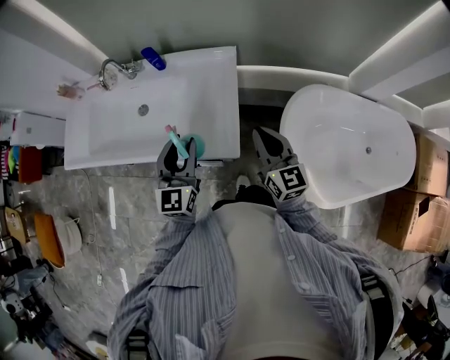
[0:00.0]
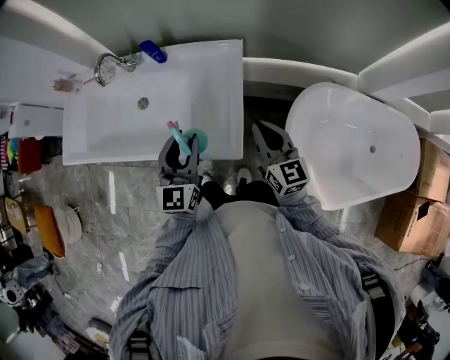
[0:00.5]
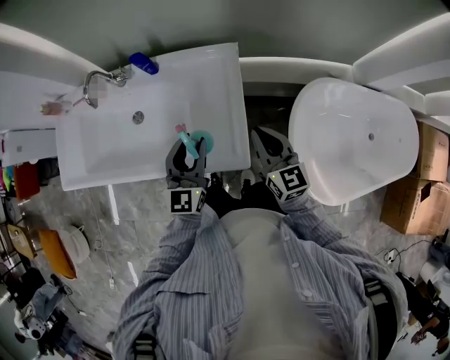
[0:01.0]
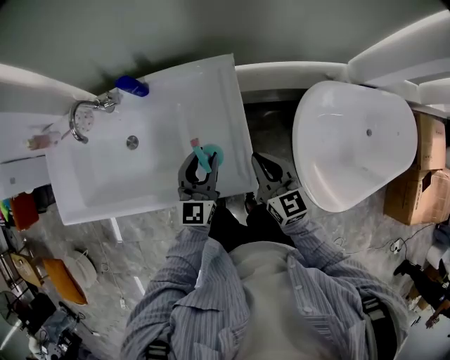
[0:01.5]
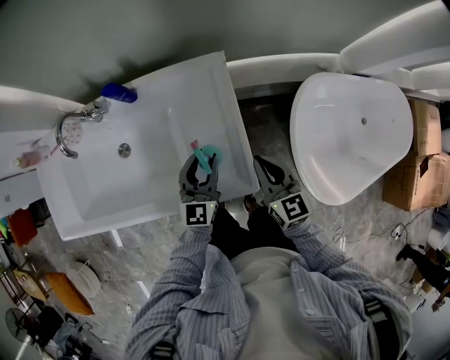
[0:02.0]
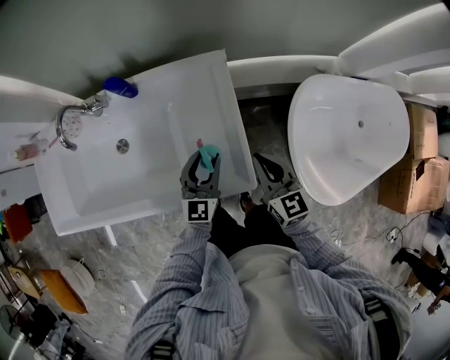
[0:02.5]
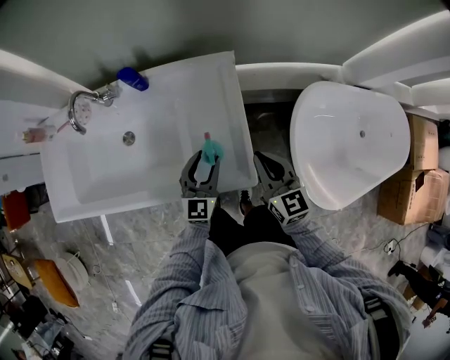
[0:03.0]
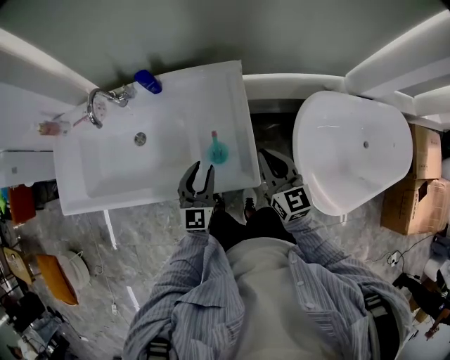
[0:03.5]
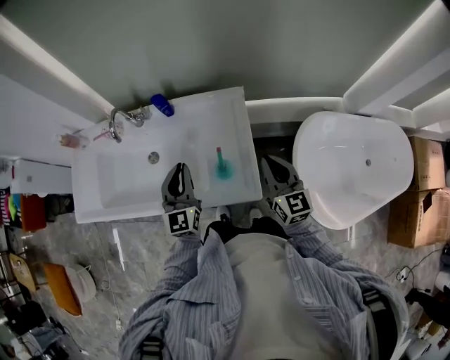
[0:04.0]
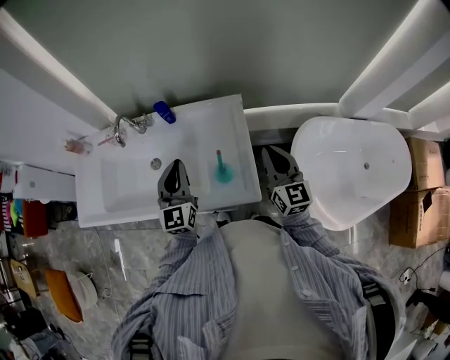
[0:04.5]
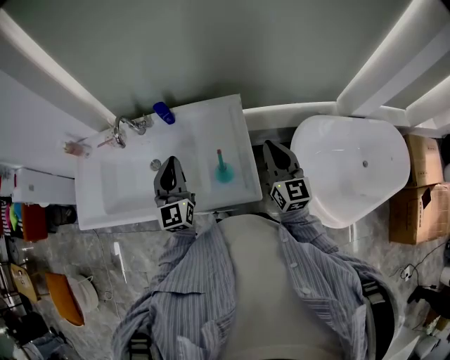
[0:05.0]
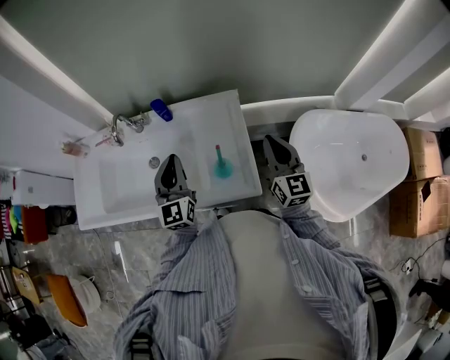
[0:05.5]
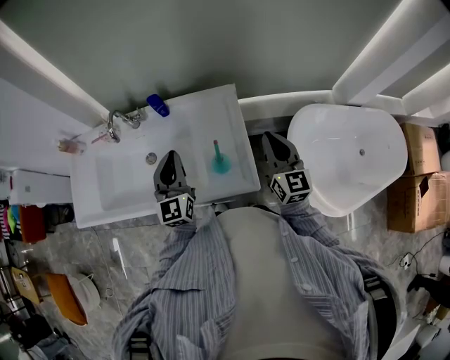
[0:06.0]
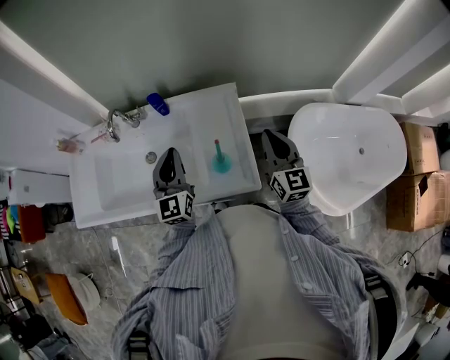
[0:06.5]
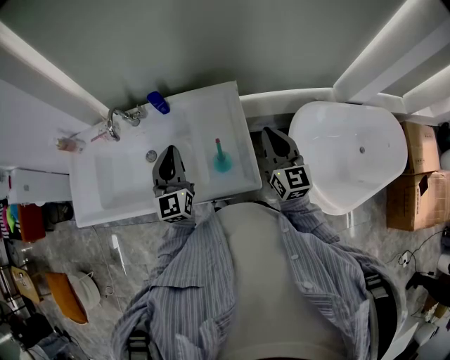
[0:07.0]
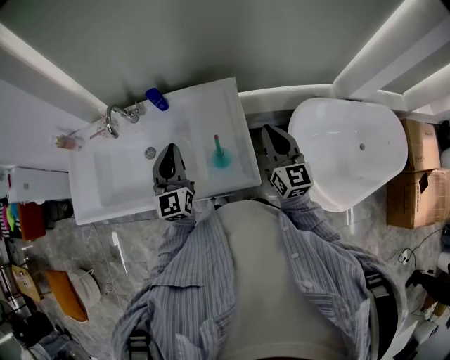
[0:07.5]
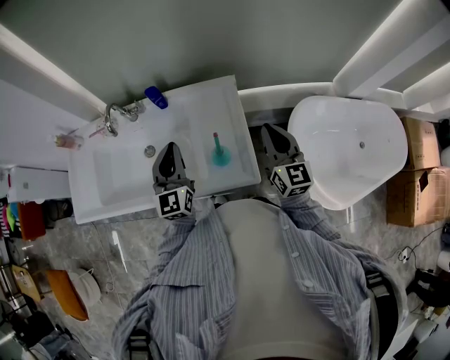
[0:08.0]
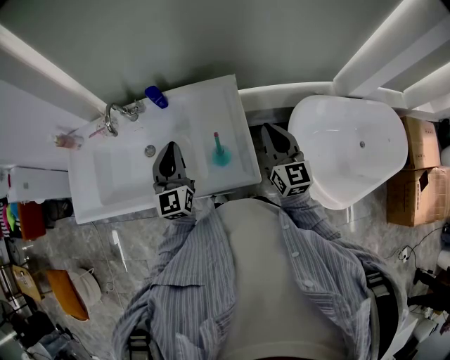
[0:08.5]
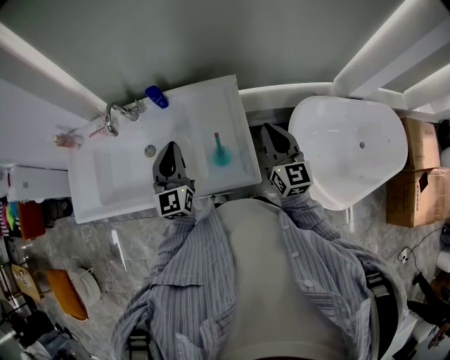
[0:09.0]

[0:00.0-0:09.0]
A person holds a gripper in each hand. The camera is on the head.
0:00.0 to 0:02.0: The right gripper travels downward, forward and to the left by about 15 cm. The left gripper heads downward and forward, covering approximately 25 cm.
0:02.0 to 0:04.5: The left gripper shifts some 20 cm upward and to the left, swivels approximately 20 degrees, and closes, while the right gripper moves upward, some 15 cm.
0:04.5 to 0:07.0: The grippers move only a little.
0:07.0 to 0:09.0: The two grippers keep their place.

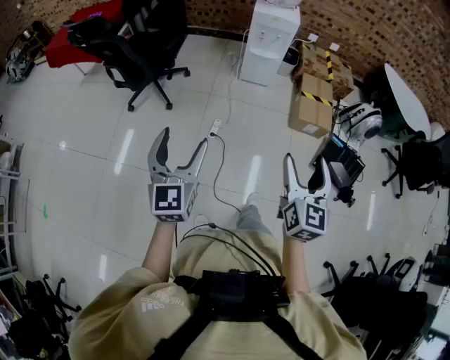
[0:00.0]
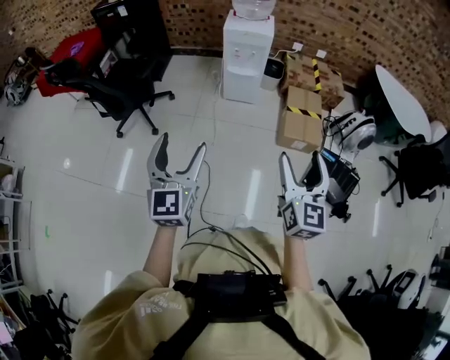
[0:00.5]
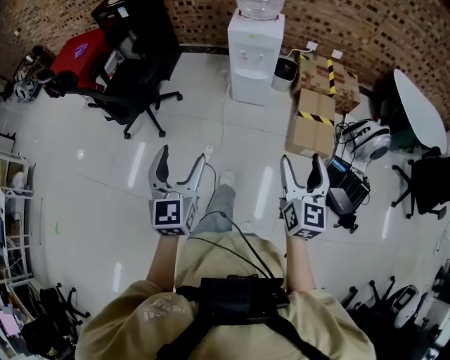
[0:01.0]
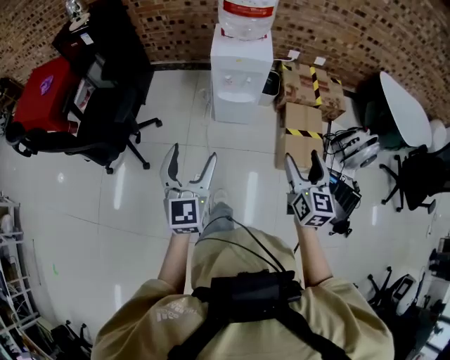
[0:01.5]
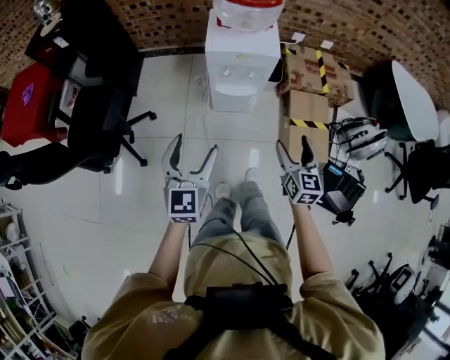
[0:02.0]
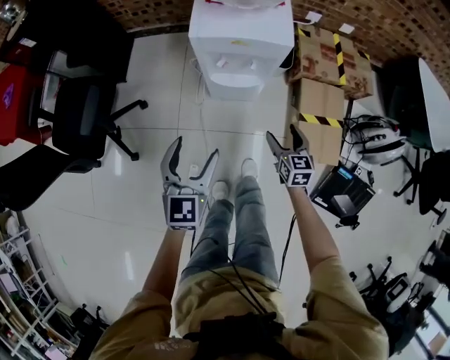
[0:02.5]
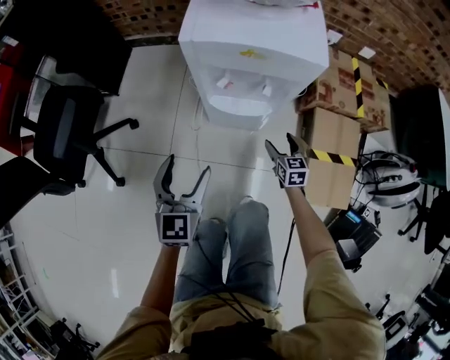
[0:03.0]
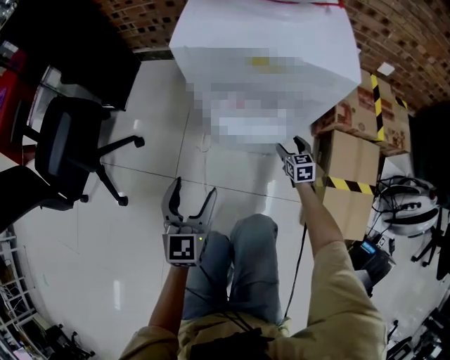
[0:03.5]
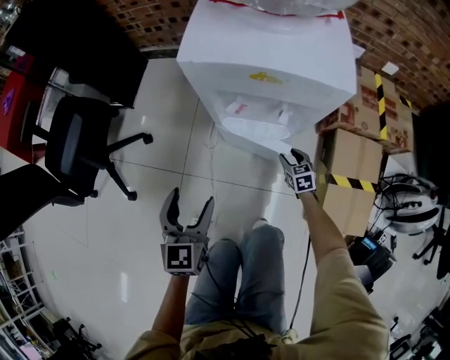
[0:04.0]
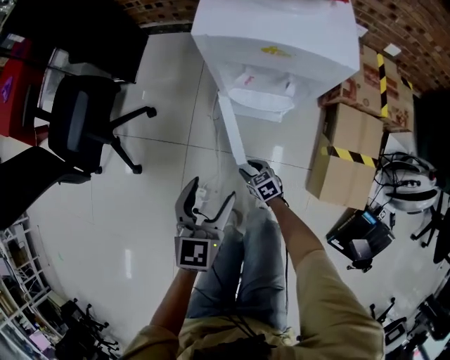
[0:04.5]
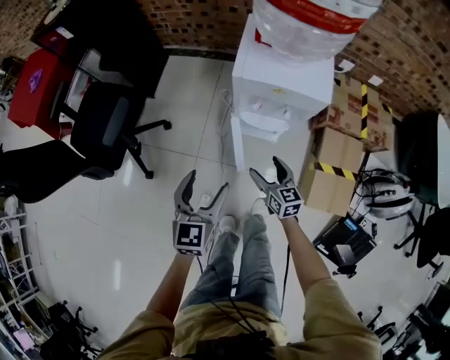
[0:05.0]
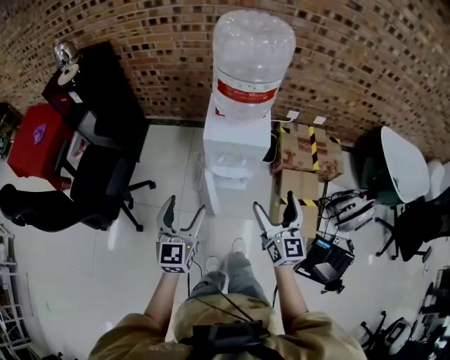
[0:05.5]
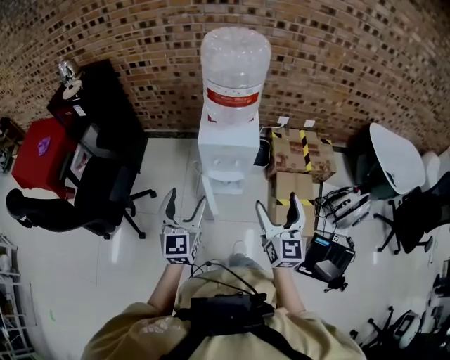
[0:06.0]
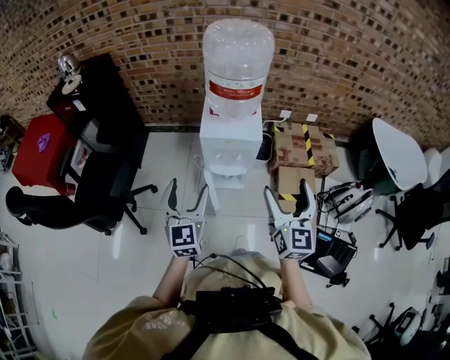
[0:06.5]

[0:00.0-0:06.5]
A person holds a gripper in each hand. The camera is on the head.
0:00.0 to 0:02.0: The two grippers travel together, forward, roughly 60 cm.
0:02.0 to 0:04.5: The right gripper shifts about 50 cm downward, changes its angle by roughly 50 degrees, and closes. The left gripper travels downward by approximately 30 cm.
0:04.5 to 0:06.5: The right gripper heads upward, covering roughly 80 cm, angles its fingers upward, by approximately 50 degrees, and opens up; the left gripper moves upward, about 40 cm, and swivels some 20 degrees.

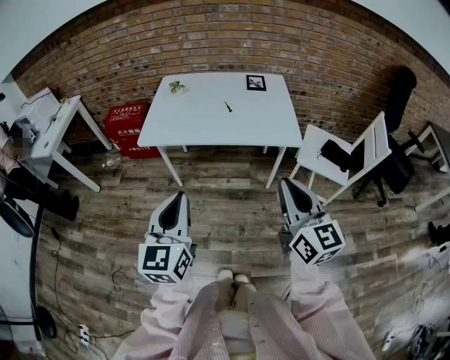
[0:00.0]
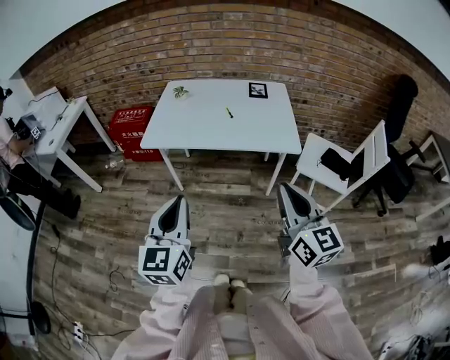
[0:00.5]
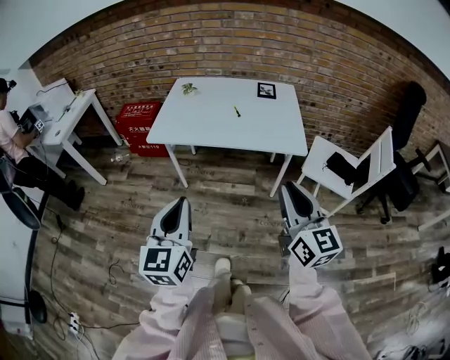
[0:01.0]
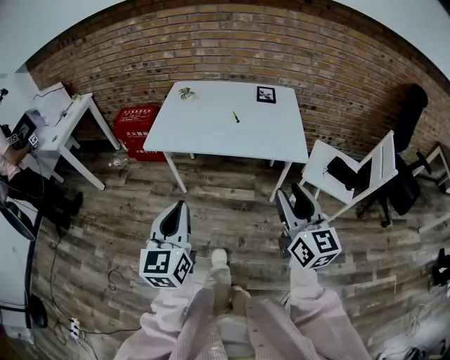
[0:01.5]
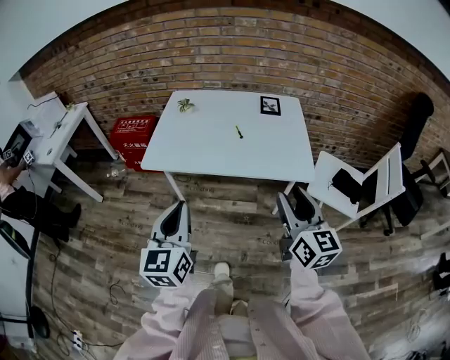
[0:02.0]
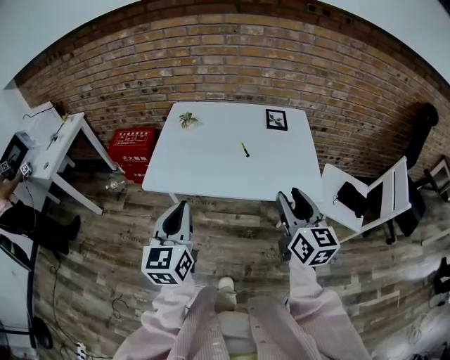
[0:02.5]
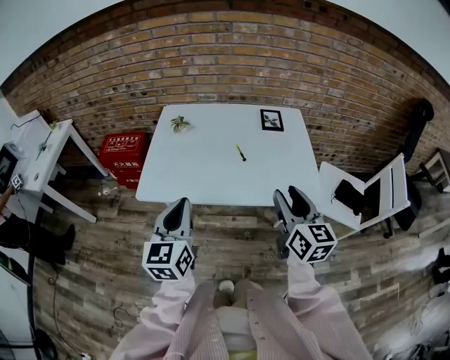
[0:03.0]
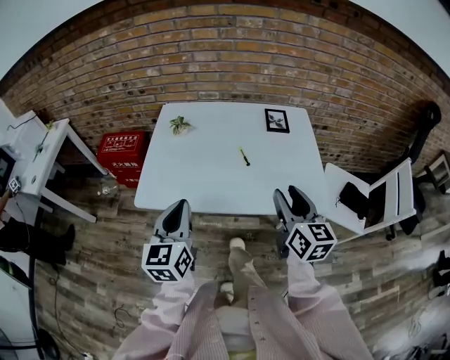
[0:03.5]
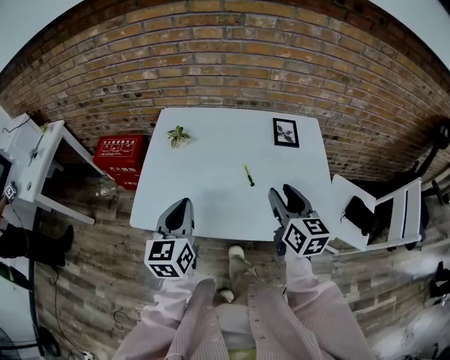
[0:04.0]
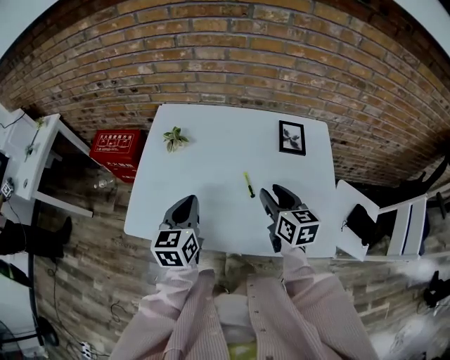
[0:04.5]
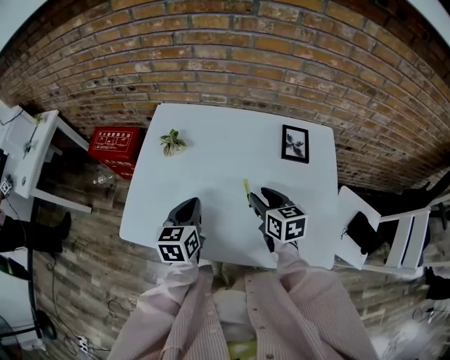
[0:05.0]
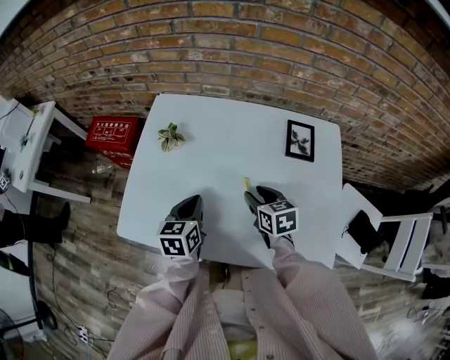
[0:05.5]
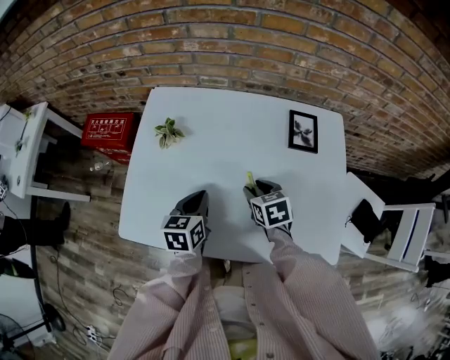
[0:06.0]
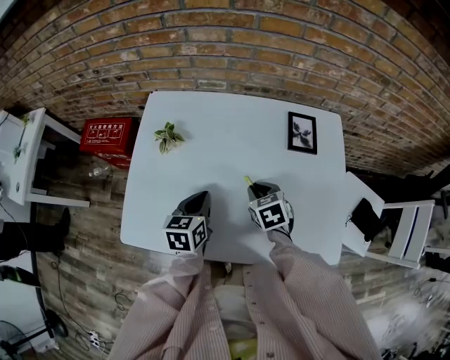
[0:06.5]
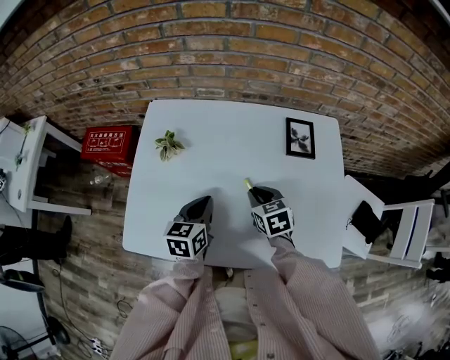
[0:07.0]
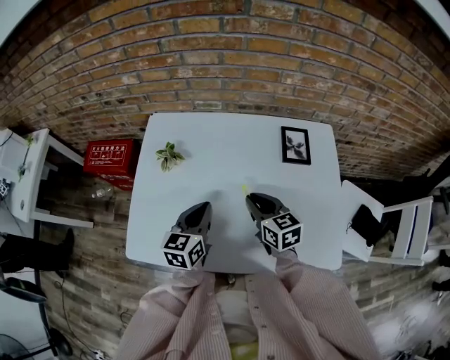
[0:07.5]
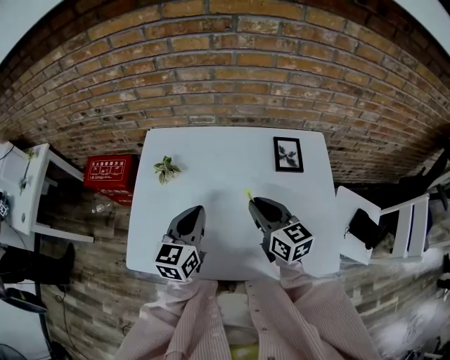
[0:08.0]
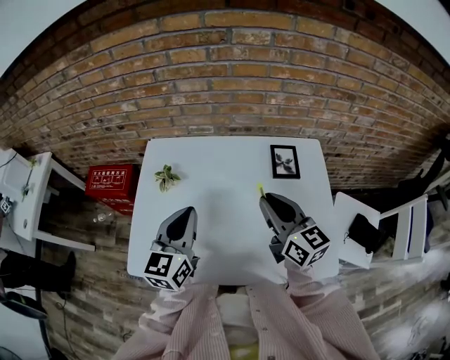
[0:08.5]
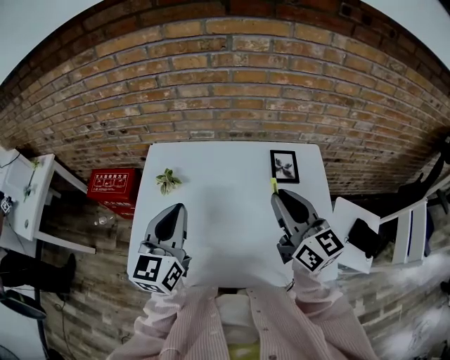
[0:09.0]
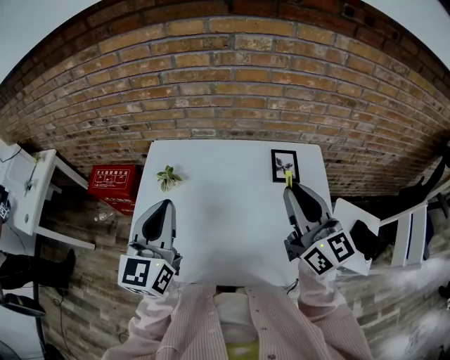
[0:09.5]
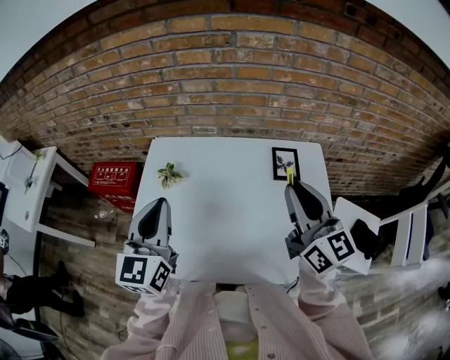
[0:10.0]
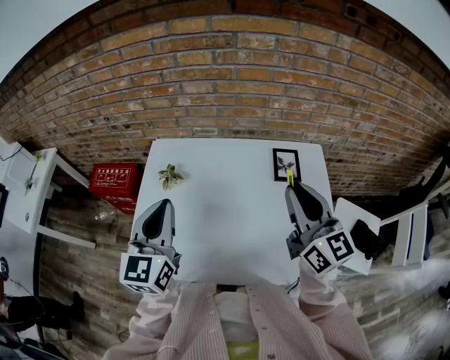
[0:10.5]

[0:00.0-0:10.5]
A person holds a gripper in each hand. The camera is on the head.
0:00.0 to 0:02.0: The grippers both shift forward by roughly 10 cm. The right gripper opens.
0:02.0 to 0:04.0: Both grippers travel together forward, about 30 cm.
0:04.0 to 0:06.5: The two grippers go roughly 20 cm downward and forward. The right gripper tilts its fingers roughly 40 degrees downward, and closes its fingers. The left gripper turns by some 30 degrees.
0:06.5 to 0:08.5: Both grippers move upward, about 20 cm. The left gripper rotates about 30 degrees. Meanwhile the right gripper tips its fingers upward by about 50 degrees.
0:08.5 to 0:10.5: The grippers both shift upward by about 10 cm.

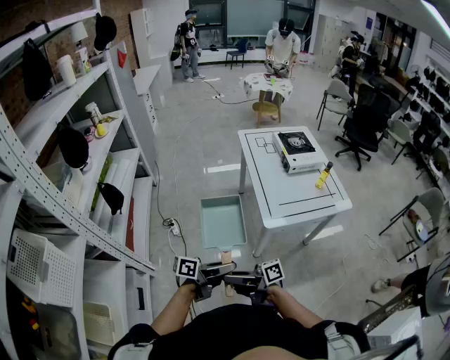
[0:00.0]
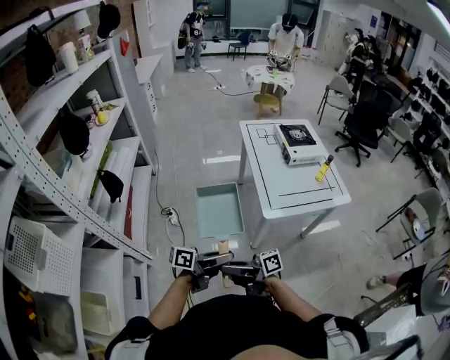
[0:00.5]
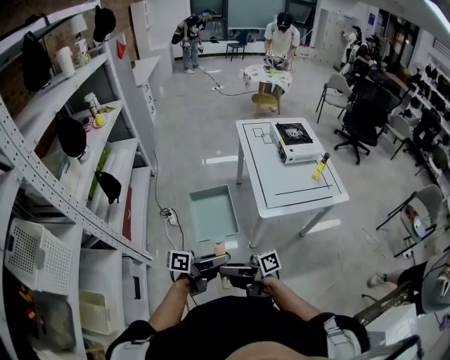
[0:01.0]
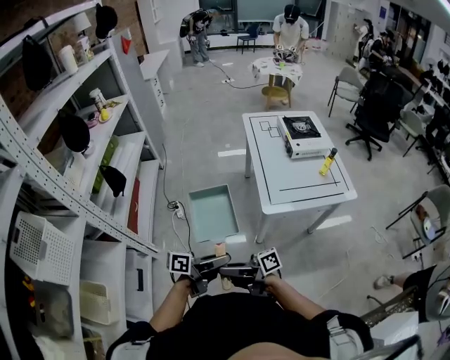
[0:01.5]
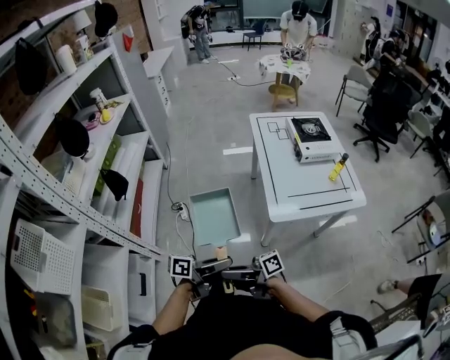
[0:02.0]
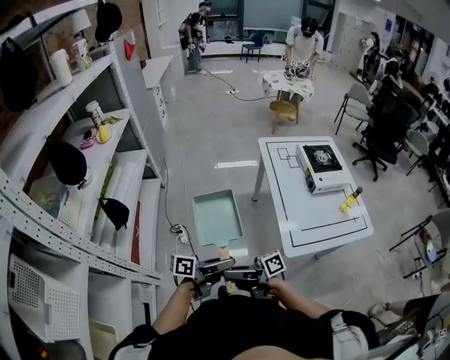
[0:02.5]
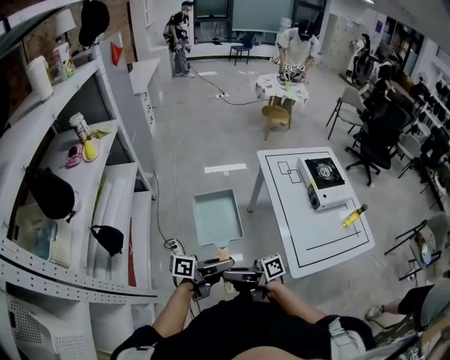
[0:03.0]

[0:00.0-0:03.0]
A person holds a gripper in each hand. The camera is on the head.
0:00.0 to 0:01.5: There are only small adjustments of the grippers.
0:01.5 to 0:03.0: The right gripper ends up some 35 cm from where it was. The left gripper ends up roughly 35 cm from where it was.
